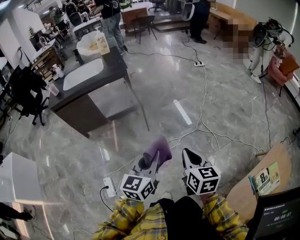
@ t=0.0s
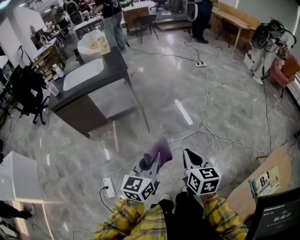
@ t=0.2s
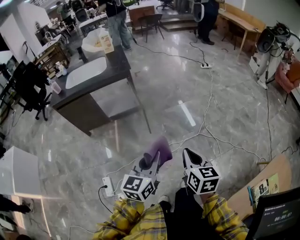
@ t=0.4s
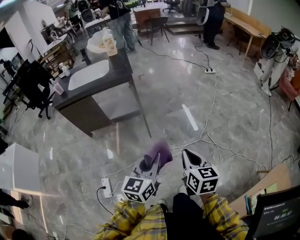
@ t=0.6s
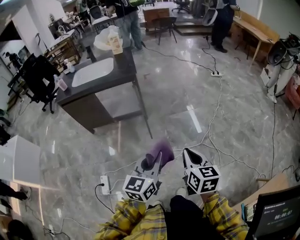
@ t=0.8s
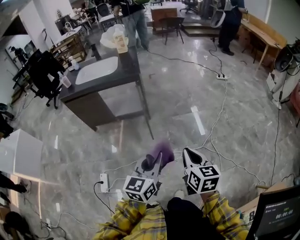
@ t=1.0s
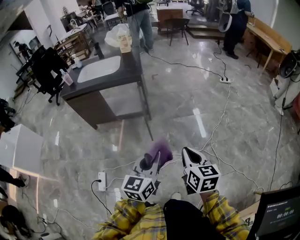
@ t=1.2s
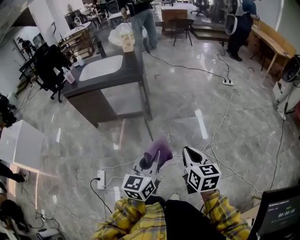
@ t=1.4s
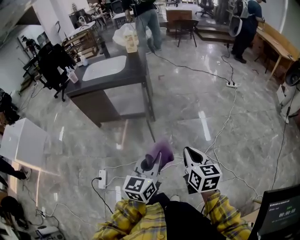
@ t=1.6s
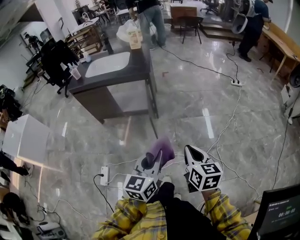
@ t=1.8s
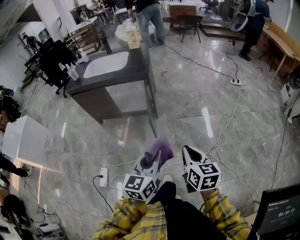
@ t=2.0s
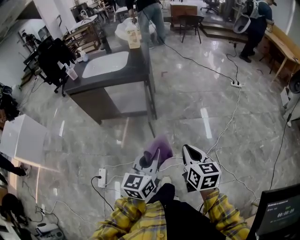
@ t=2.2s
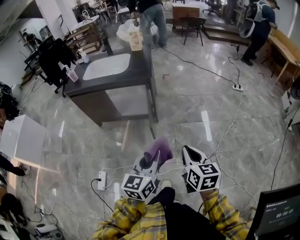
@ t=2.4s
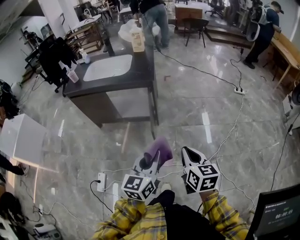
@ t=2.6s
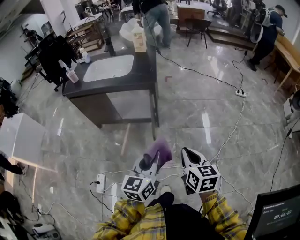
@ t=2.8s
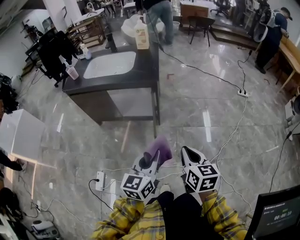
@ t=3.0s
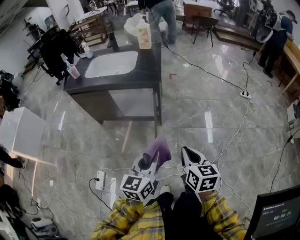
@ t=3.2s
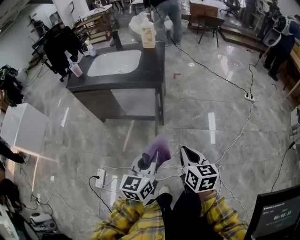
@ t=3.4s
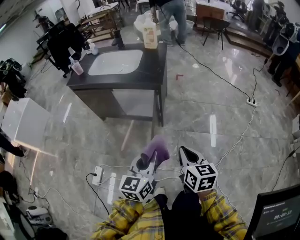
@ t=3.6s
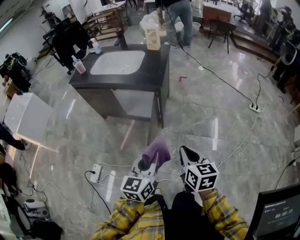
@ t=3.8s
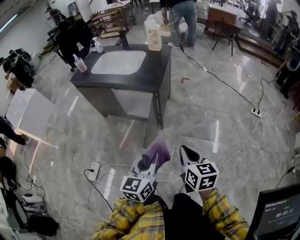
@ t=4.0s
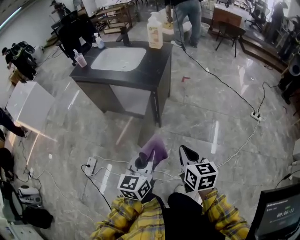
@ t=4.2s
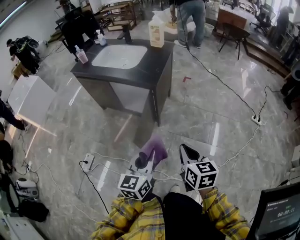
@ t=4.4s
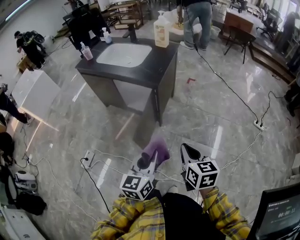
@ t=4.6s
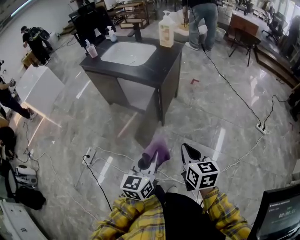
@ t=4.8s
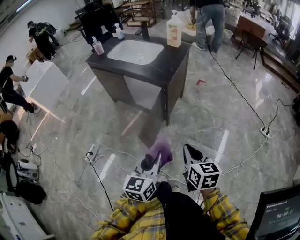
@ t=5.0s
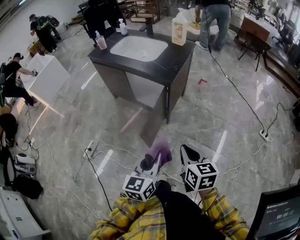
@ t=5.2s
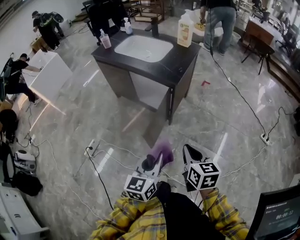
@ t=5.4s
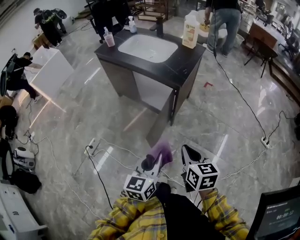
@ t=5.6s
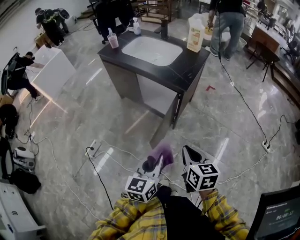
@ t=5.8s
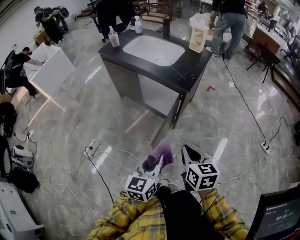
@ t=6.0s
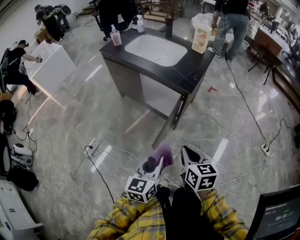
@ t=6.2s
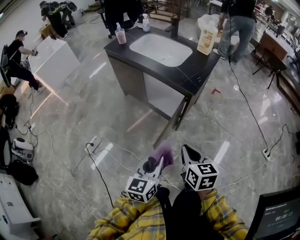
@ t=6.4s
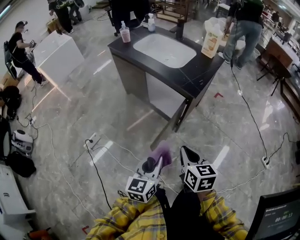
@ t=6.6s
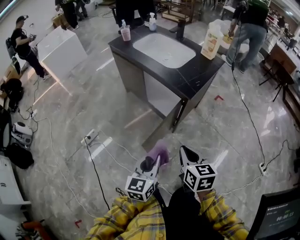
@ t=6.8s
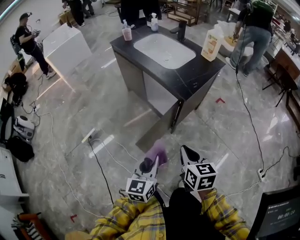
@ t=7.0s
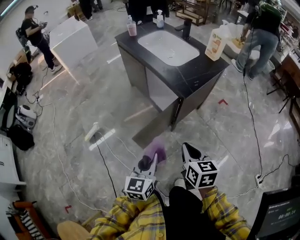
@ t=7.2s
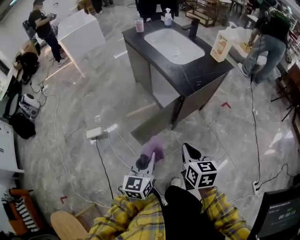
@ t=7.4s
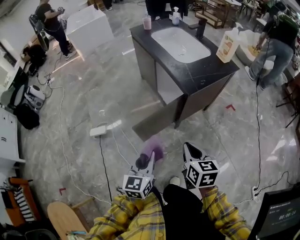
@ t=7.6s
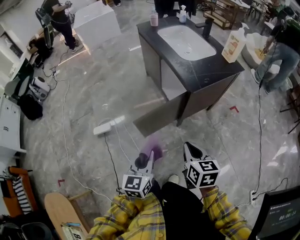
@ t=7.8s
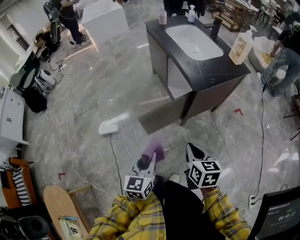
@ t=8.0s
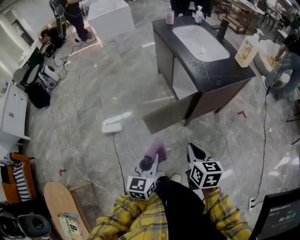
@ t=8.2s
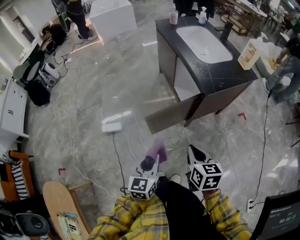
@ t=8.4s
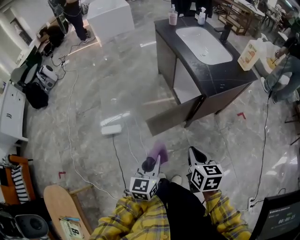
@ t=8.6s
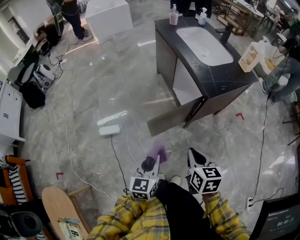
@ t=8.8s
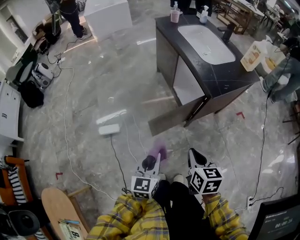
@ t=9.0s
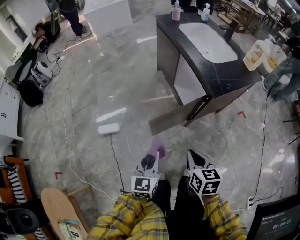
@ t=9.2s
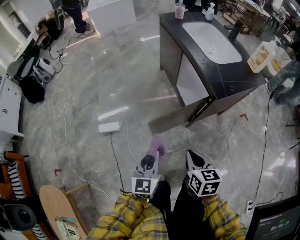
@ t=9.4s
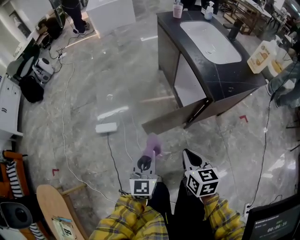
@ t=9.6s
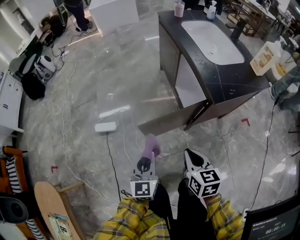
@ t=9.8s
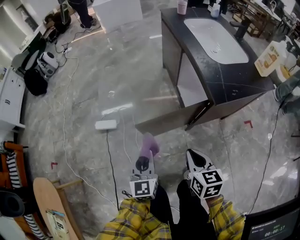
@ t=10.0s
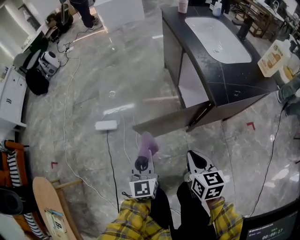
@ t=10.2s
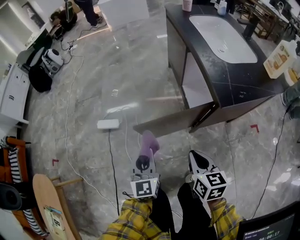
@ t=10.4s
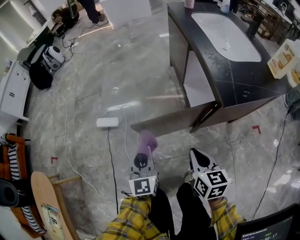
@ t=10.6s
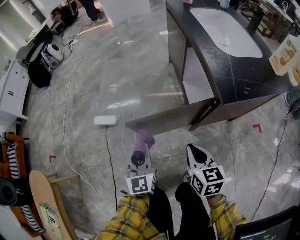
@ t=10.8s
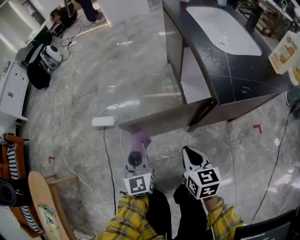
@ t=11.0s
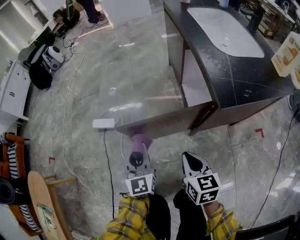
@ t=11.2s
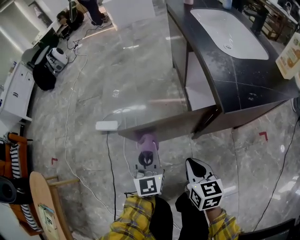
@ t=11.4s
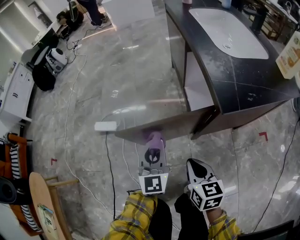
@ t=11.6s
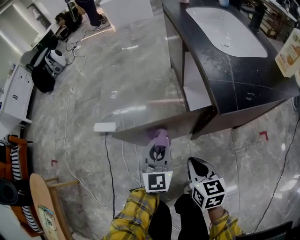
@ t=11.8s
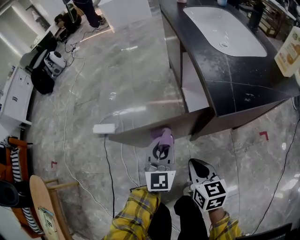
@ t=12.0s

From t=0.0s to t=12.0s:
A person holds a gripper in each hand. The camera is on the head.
From t=0.0s to t=1.6s: Both grippers move forward and to the right, about 20 cm. The left gripper turns by roughly 20 degrees. The right gripper rotates approximately 20 degrees.
From t=1.6s to t=3.0s: The grippers both shift forward by approximately 15 cm.
From t=3.0s to t=4.4s: The two grippers go approximately 15 cm to the right and forward. The right gripper swivels roughly 20 degrees, while the left gripper changes its angle by some 20 degrees.
From t=4.4s to t=6.0s: The right gripper shifts some 10 cm to the left and forward. The left gripper heads to the left, covering about 5 cm.
From t=6.0s to t=7.6s: The right gripper changes place by some 15 cm, and swivels about 30 degrees; the left gripper moves roughly 15 cm, and rotates some 30 degrees.
From t=7.6s to t=9.0s: The grippers both shift to the left by some 5 cm.
From t=9.0s to t=10.4s: The right gripper heads downward, forward and to the right, covering approximately 15 cm. Meanwhile the left gripper shifts roughly 10 cm downward and forward, and turns by some 30 degrees.
From t=10.4s to t=12.0s: The right gripper heads downward and to the right, covering about 10 cm. Meanwhile the left gripper goes approximately 20 cm to the right and forward.

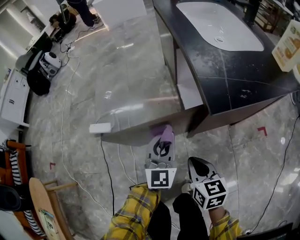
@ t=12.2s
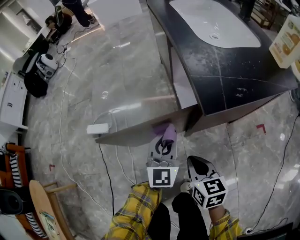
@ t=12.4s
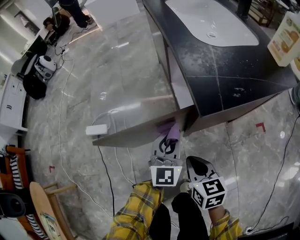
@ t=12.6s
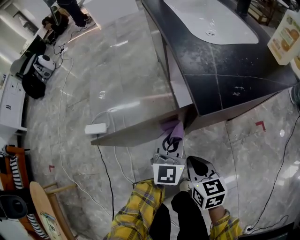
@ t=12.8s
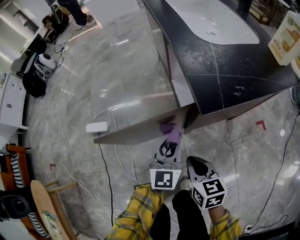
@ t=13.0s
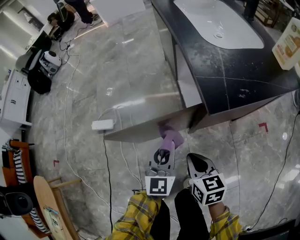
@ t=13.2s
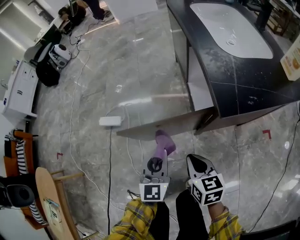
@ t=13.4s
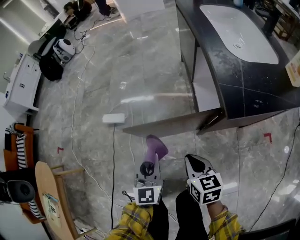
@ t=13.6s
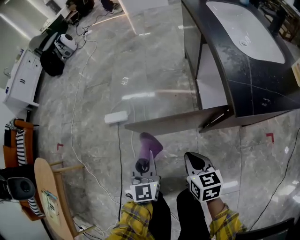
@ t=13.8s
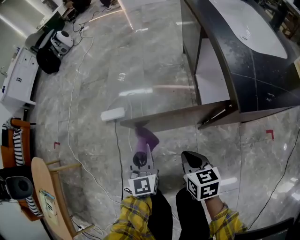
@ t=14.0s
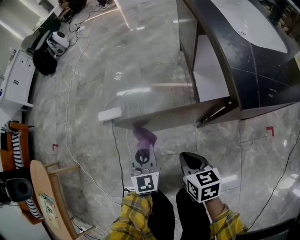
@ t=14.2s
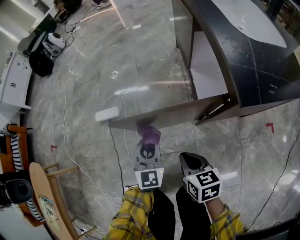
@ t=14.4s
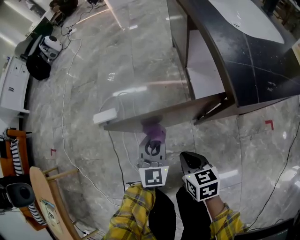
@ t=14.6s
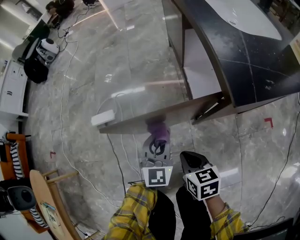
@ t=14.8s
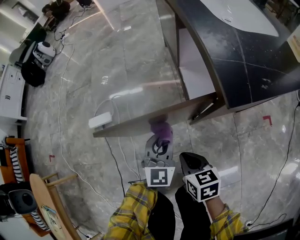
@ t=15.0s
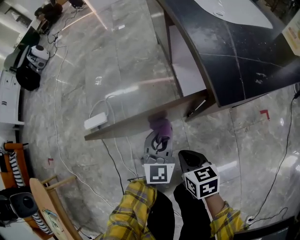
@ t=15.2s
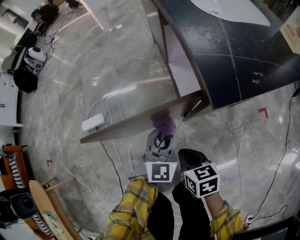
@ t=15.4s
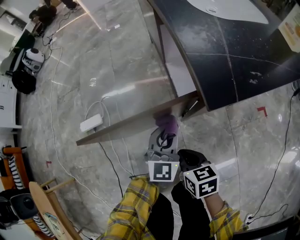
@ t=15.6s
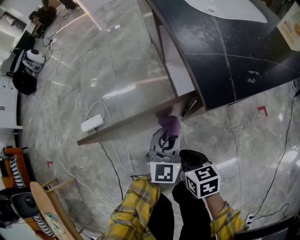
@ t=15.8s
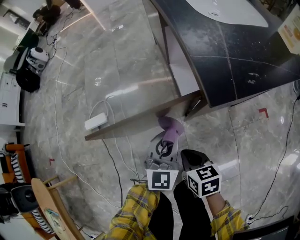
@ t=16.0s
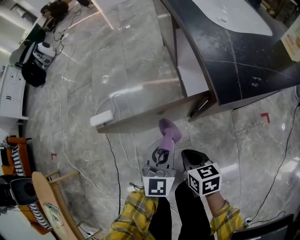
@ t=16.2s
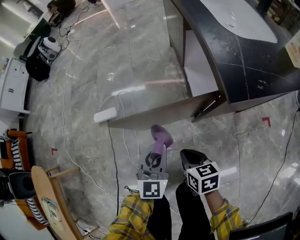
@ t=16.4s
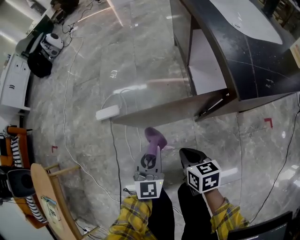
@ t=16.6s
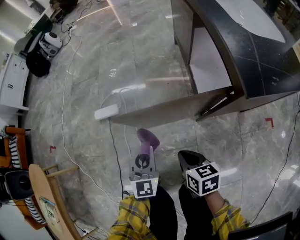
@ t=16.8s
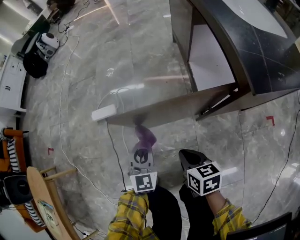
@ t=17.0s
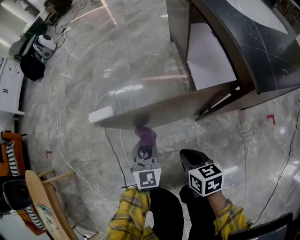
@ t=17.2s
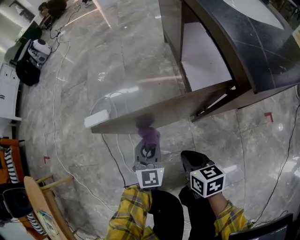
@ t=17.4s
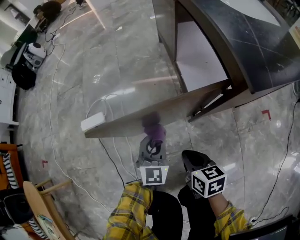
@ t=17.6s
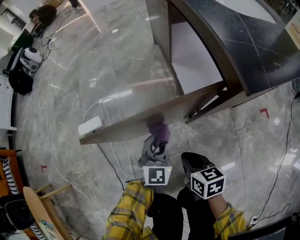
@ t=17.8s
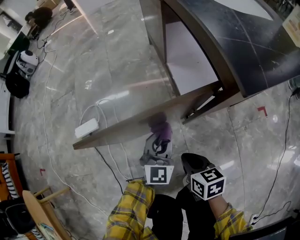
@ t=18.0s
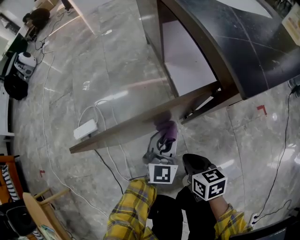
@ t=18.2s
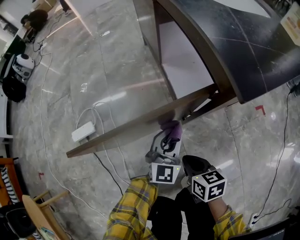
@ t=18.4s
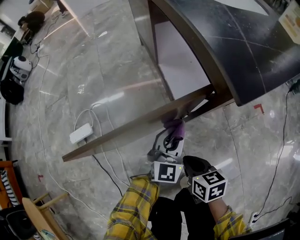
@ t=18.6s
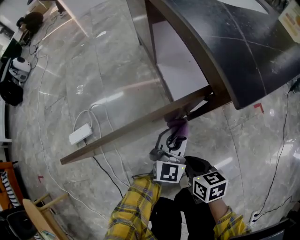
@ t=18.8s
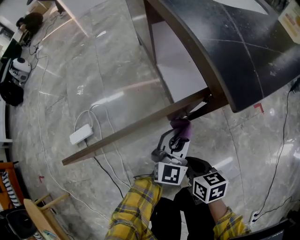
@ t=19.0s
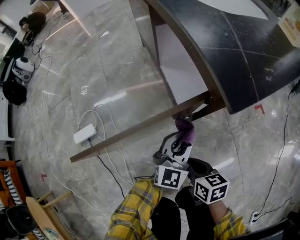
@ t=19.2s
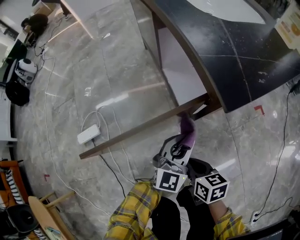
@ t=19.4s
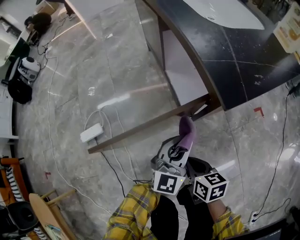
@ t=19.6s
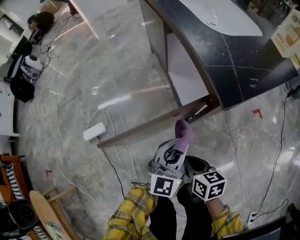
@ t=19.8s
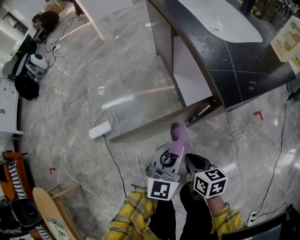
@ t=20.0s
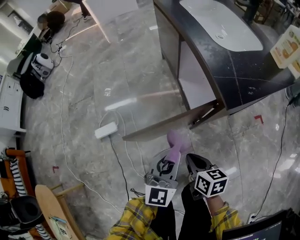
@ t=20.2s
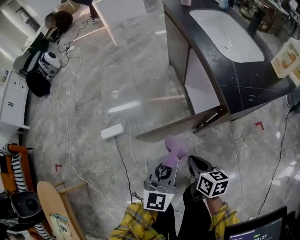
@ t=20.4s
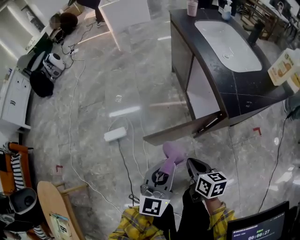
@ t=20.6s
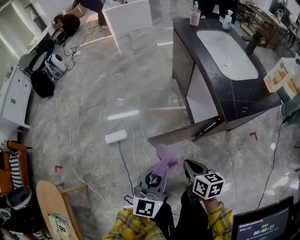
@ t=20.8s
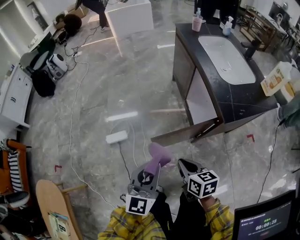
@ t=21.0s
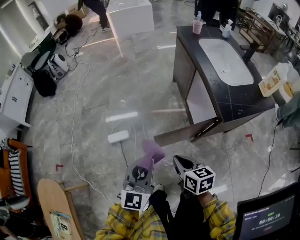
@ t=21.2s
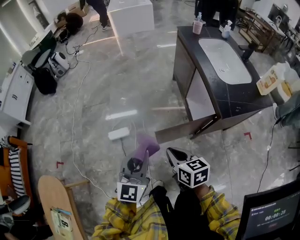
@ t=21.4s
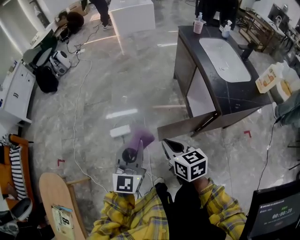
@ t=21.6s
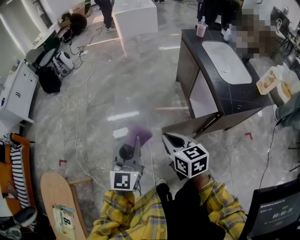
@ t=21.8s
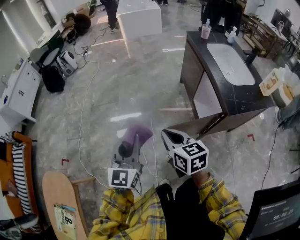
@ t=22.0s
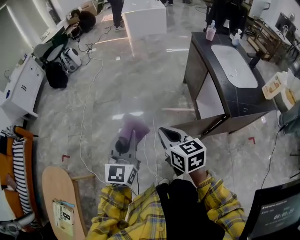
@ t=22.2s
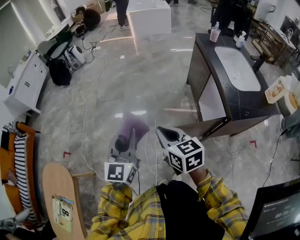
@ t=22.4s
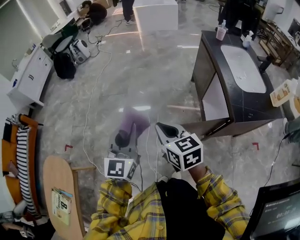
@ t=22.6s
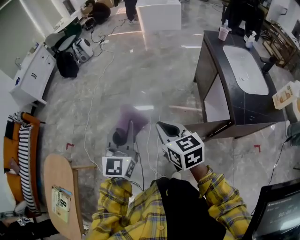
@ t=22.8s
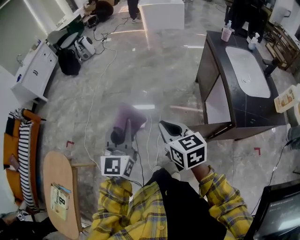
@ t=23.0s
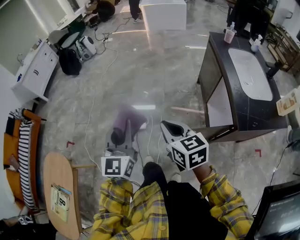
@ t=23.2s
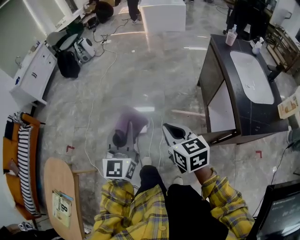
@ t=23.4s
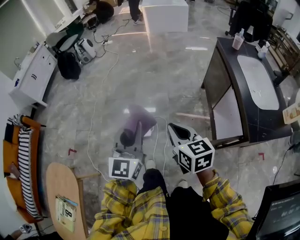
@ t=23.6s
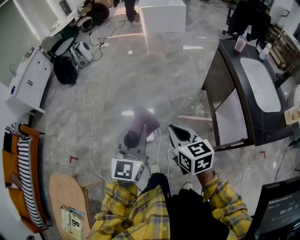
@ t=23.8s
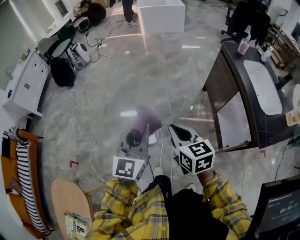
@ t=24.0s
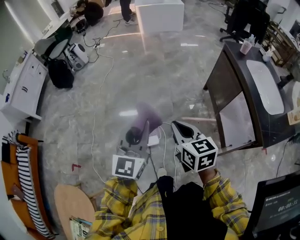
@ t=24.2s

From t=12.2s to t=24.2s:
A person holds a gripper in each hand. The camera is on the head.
From t=12.2s to t=13.8s: The left gripper heads to the left and backward, covering approximately 20 cm, and rotates roughly 20 degrees. Meanwhile the right gripper moves to the left, about 10 cm.
From t=13.8s to t=15.2s: The right gripper shifts roughly 10 cm downward and to the right. The left gripper is displaced to the right and downward by some 20 cm, and swivels roughly 30 degrees.
From t=15.2s to t=16.6s: The left gripper shifts some 15 cm to the left and backward, while the right gripper is displaced to the left by roughly 5 cm.
From t=16.6s to t=18.2s: The left gripper goes some 20 cm to the right, downward and forward, and swivels some 20 degrees. Meanwhile the right gripper heads downward and to the right, covering roughly 15 cm.
From t=18.2s to t=19.8s: The left gripper travels upward by roughly 15 cm. The right gripper shifts roughly 10 cm upward.
From t=19.8s to t=21.2s: The right gripper goes approximately 30 cm upward and to the left; the left gripper shifts roughly 40 cm to the left and upward.
From t=21.2s to t=22.6s: The right gripper goes approximately 20 cm upward, to the left and forward, and rotates roughly 20 degrees. The left gripper shifts roughly 20 cm to the left, upward and forward.
From t=22.6s to t=24.2s: The two grippers go roughly 25 cm forward and to the left.
